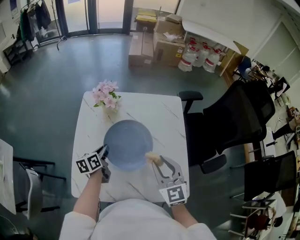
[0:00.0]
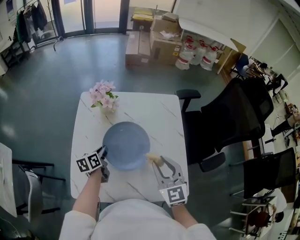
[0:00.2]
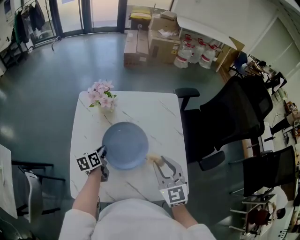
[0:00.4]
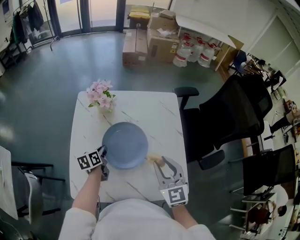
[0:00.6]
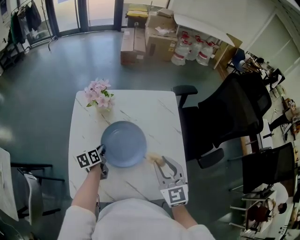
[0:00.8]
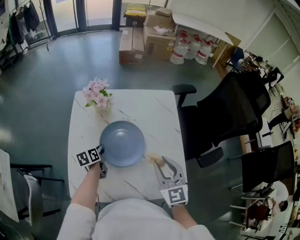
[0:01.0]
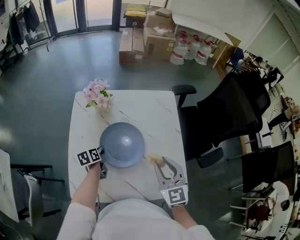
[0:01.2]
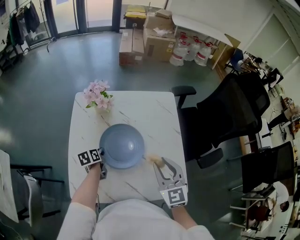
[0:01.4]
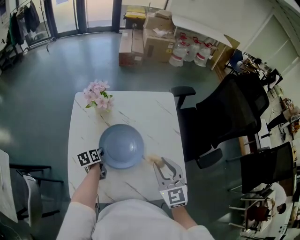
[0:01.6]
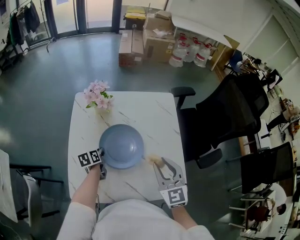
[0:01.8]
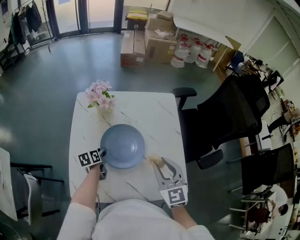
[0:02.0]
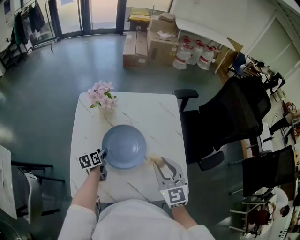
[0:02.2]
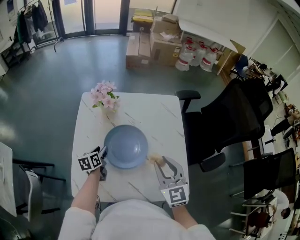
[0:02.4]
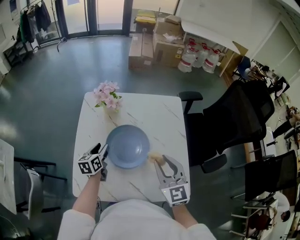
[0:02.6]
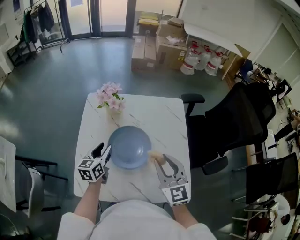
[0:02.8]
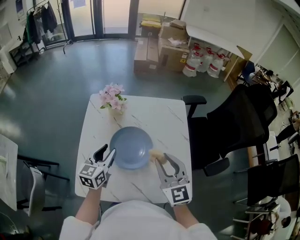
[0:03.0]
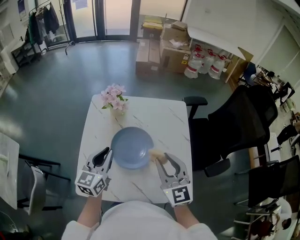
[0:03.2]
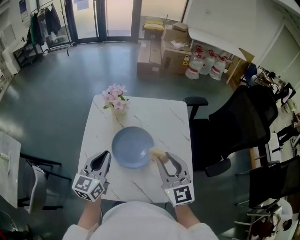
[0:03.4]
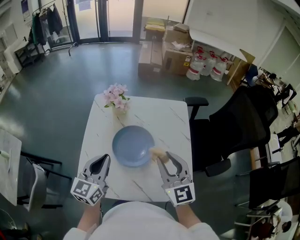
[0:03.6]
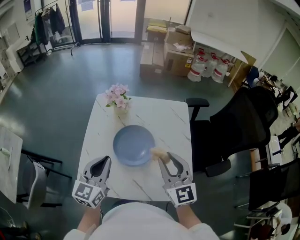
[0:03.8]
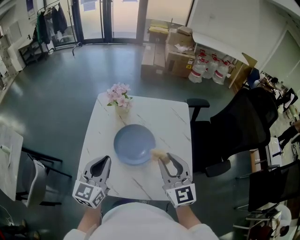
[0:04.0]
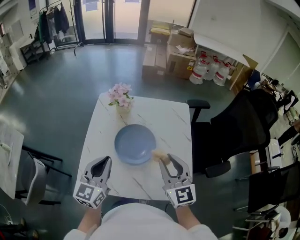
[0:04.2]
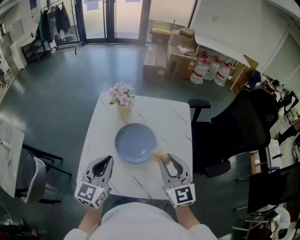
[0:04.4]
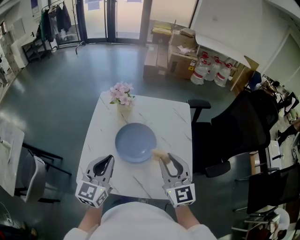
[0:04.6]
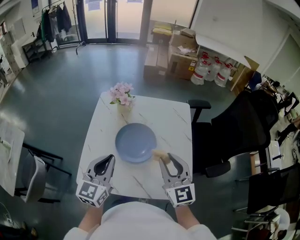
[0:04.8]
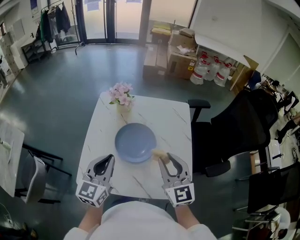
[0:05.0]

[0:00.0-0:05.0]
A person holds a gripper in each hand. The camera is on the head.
0:00.0 to 0:01.6: The left gripper travels downward by approximately 10 cm.
0:01.6 to 0:03.4: The left gripper moves upward, some 25 cm, tilts its fingers about 40 degrees upward, and opens, then closes once more. Meanwhile the right gripper travels upward by roughly 5 cm.
0:03.4 to 0:05.0: The left gripper is displaced backward by roughly 5 cm.

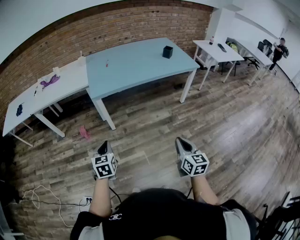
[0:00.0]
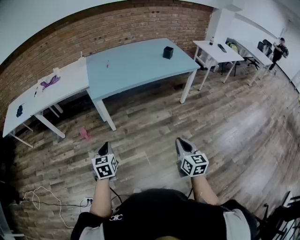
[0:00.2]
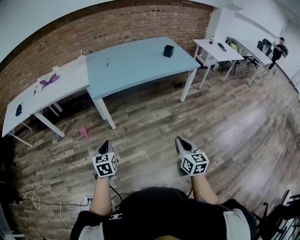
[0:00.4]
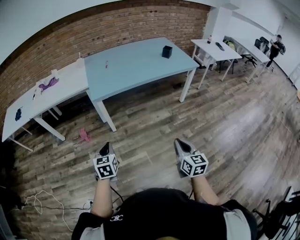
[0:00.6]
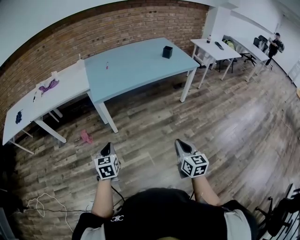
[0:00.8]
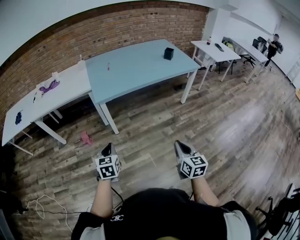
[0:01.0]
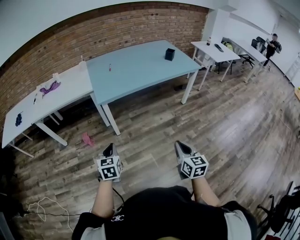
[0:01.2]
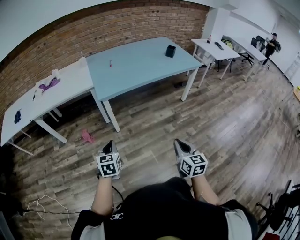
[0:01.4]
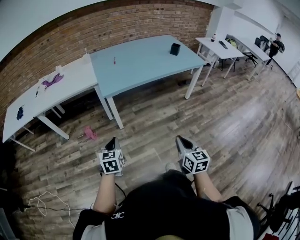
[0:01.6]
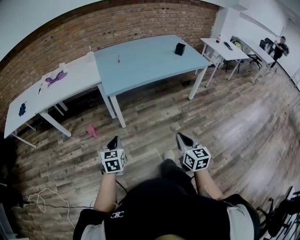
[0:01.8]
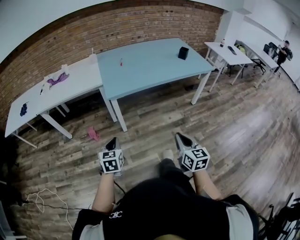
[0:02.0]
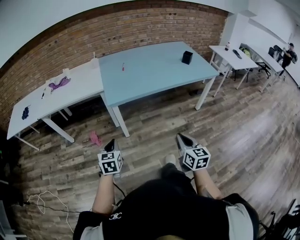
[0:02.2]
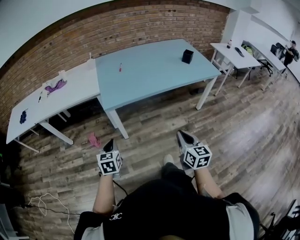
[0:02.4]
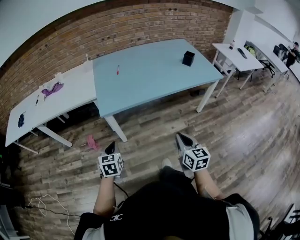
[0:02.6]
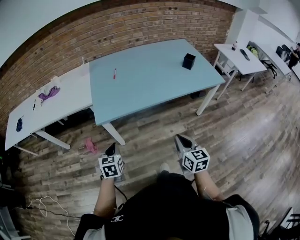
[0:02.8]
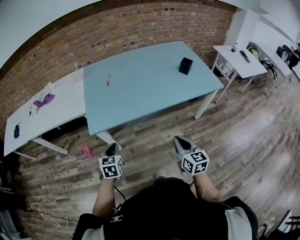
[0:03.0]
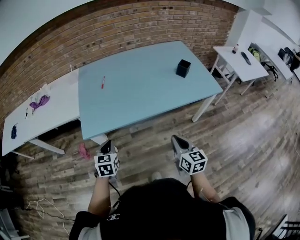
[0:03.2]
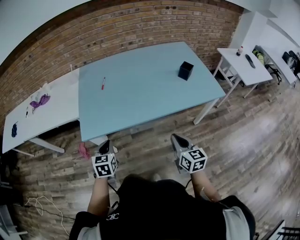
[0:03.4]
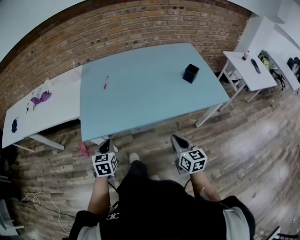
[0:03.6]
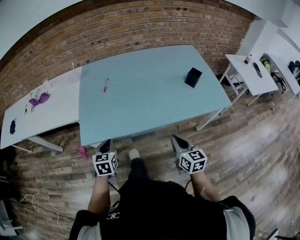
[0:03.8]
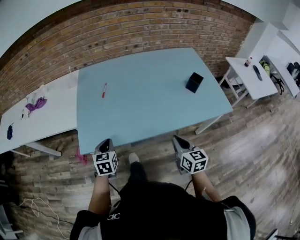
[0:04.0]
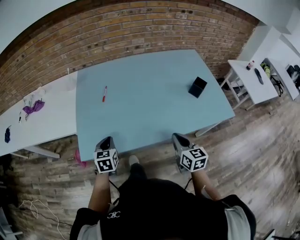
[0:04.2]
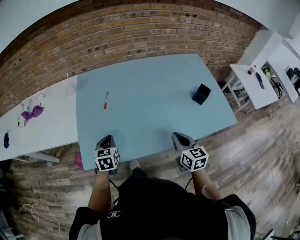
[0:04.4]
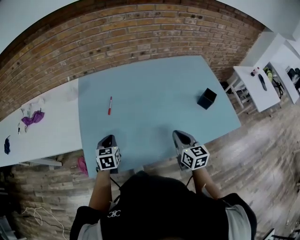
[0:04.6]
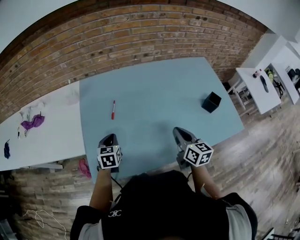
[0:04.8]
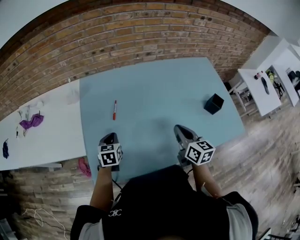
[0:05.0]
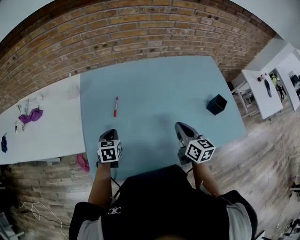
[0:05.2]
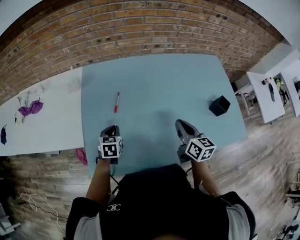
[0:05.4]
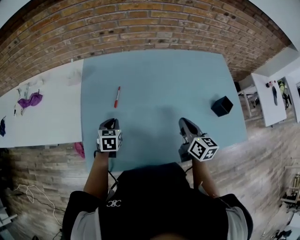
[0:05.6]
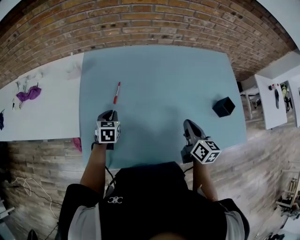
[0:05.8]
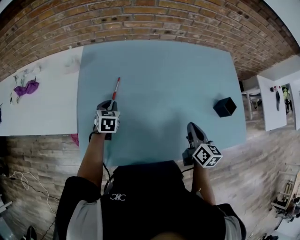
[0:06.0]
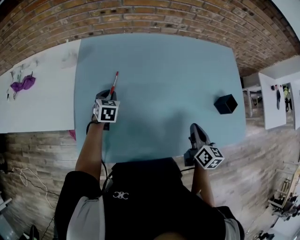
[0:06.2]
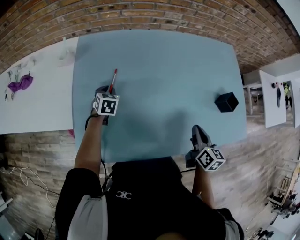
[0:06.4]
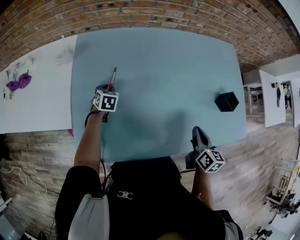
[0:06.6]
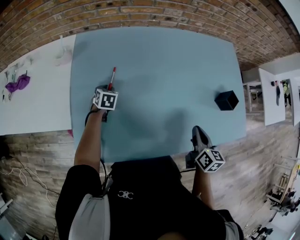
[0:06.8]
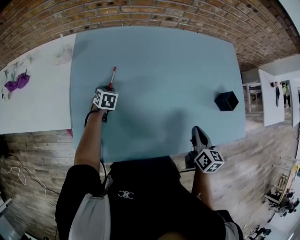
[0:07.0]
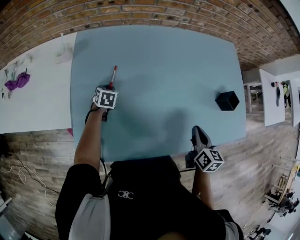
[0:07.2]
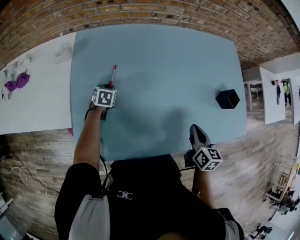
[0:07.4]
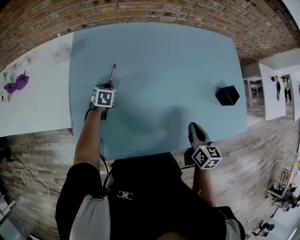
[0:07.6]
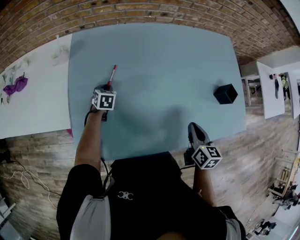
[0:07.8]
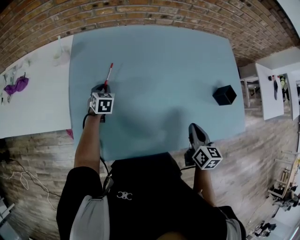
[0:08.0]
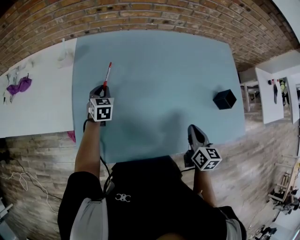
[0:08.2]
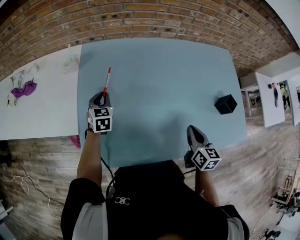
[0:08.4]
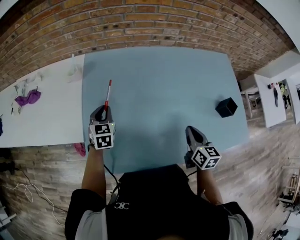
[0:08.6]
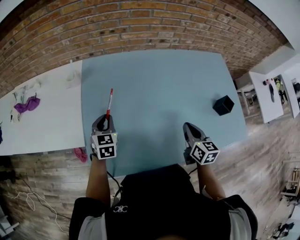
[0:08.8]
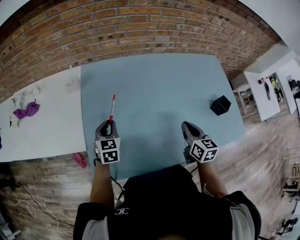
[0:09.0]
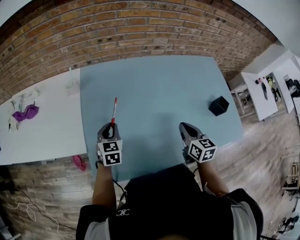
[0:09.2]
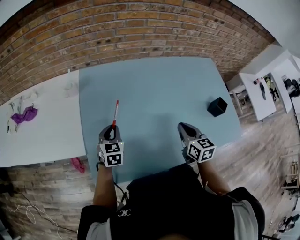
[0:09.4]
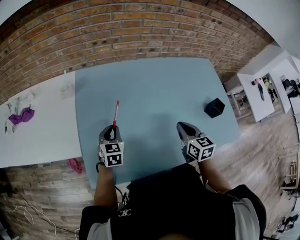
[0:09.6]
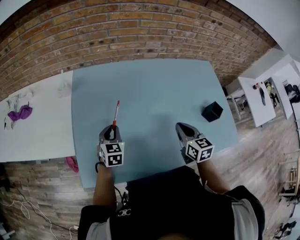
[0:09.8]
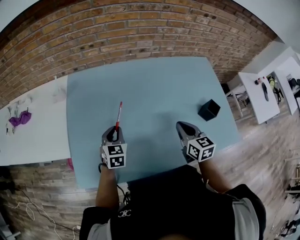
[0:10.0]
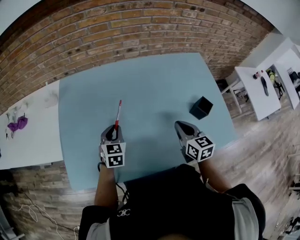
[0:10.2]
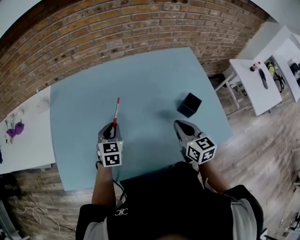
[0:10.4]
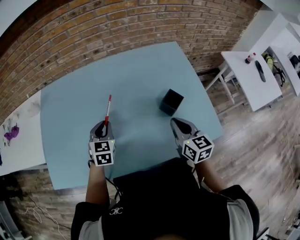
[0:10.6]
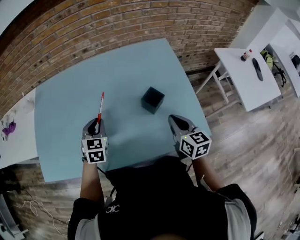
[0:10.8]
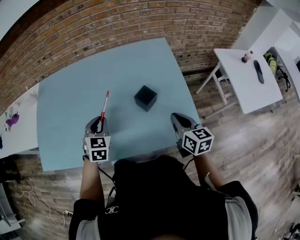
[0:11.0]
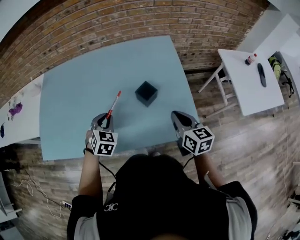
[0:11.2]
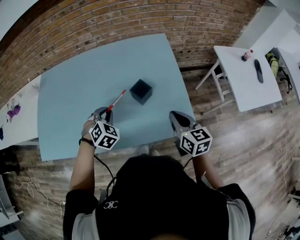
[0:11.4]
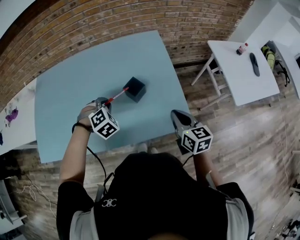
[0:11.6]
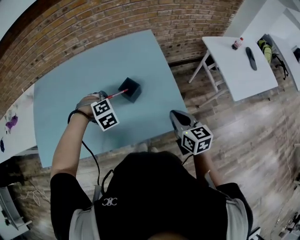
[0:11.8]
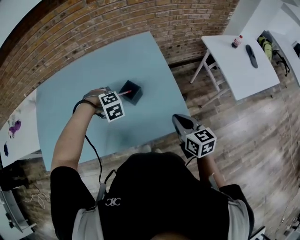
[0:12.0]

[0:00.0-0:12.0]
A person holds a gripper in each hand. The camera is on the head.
0:00.0 to 0:01.6: The left gripper travels to the left by some 10 cm, while the right gripper shifts approximately 15 cm to the left.
0:01.6 to 0:03.0: The grippers both shift forward and to the right by roughly 35 cm.
0:03.0 to 0:04.4: The grippers both shift forward by about 30 cm.
0:04.4 to 0:06.0: Both grippers move forward, approximately 15 cm.
0:06.0 to 0:07.6: The left gripper heads downward and forward, covering approximately 10 cm.
0:07.6 to 0:09.0: The left gripper heads upward and backward, covering about 20 cm, and rotates roughly 30 degrees. Meanwhile the right gripper travels to the left and forward by about 10 cm.
0:09.0 to 0:10.4: The two grippers go some 25 cm to the right.
0:10.4 to 0:12.0: The left gripper shifts roughly 30 cm to the right, and twists some 70 degrees clockwise, seen from behind; the right gripper is displaced to the right and backward by some 30 cm.

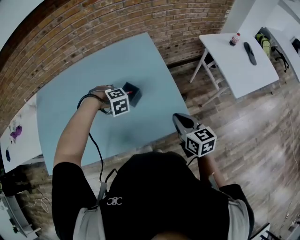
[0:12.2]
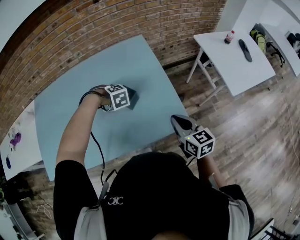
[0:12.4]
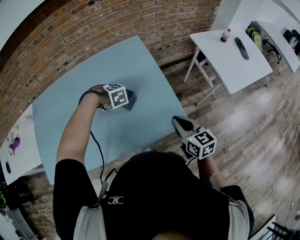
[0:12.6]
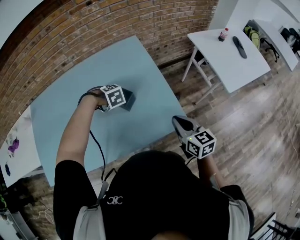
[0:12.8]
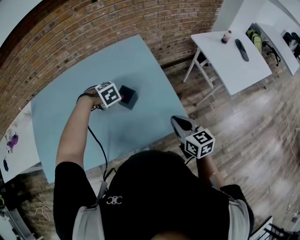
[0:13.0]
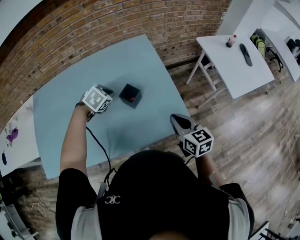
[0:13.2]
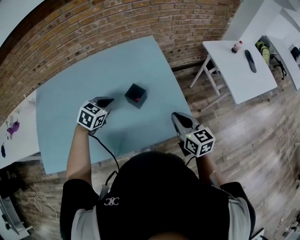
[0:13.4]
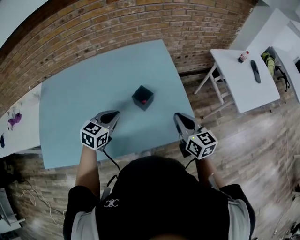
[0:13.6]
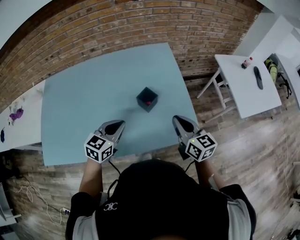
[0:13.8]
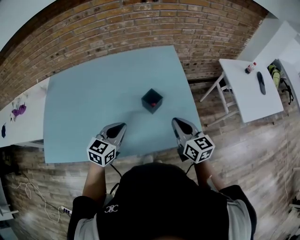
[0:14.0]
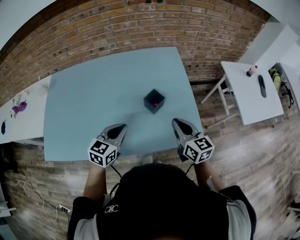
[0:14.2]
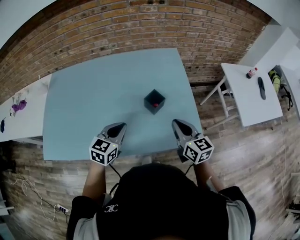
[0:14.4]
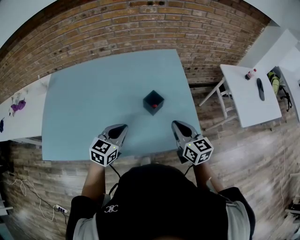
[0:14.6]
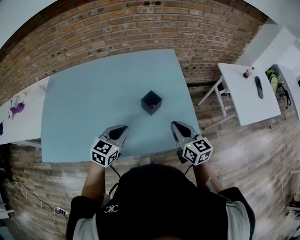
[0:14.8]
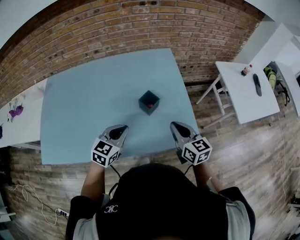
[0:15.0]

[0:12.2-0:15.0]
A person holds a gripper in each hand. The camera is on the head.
0:12.2 to 0:13.6: The right gripper ends up roughly 5 cm from where it was, while the left gripper changes place by about 10 cm, and angles its fingers upward, by roughly 30 degrees.
0:13.6 to 0:15.0: The left gripper is displaced backward by approximately 5 cm.

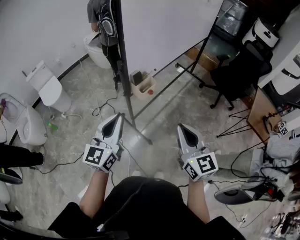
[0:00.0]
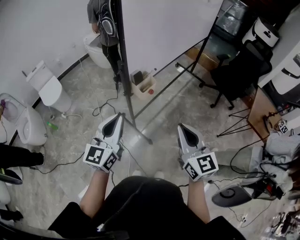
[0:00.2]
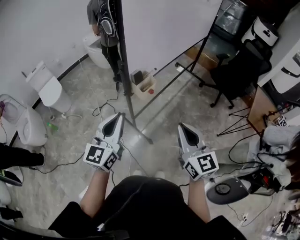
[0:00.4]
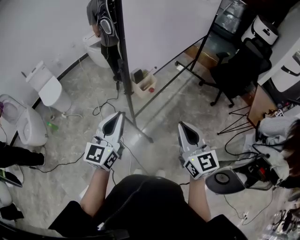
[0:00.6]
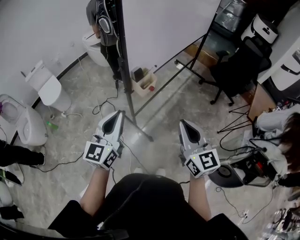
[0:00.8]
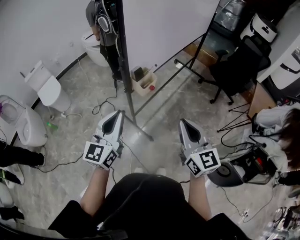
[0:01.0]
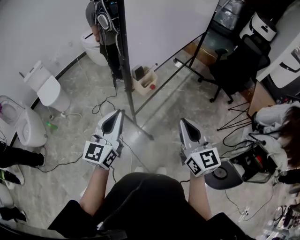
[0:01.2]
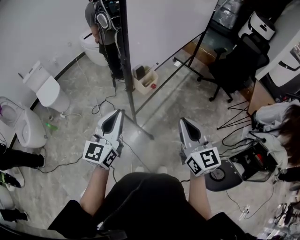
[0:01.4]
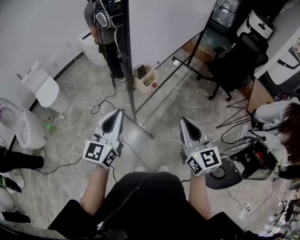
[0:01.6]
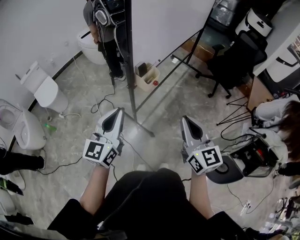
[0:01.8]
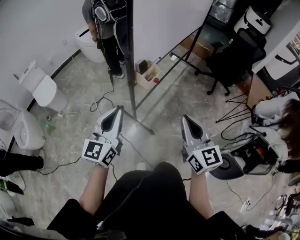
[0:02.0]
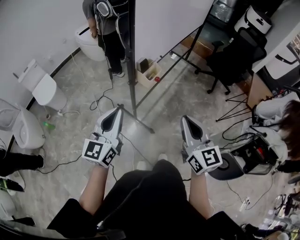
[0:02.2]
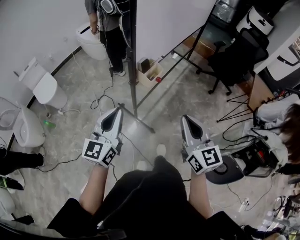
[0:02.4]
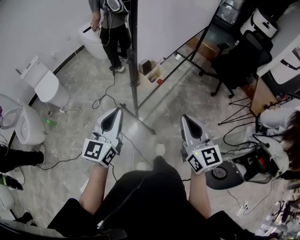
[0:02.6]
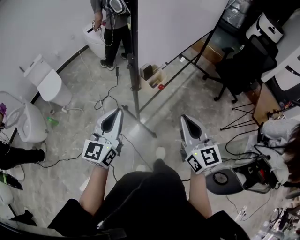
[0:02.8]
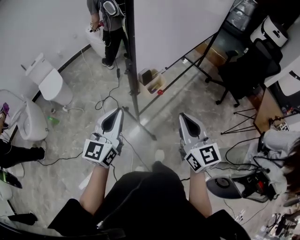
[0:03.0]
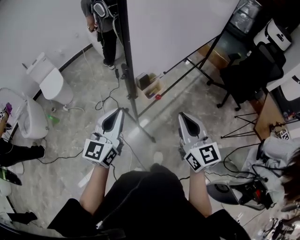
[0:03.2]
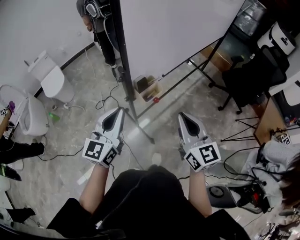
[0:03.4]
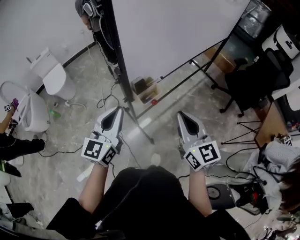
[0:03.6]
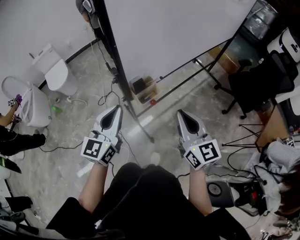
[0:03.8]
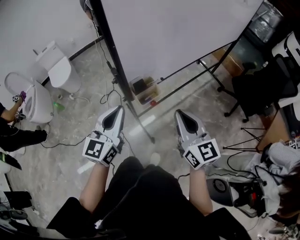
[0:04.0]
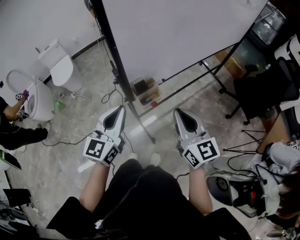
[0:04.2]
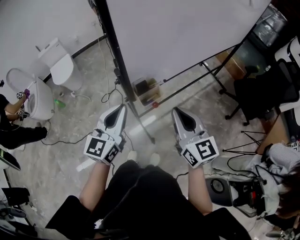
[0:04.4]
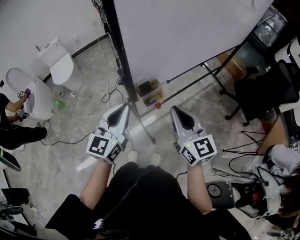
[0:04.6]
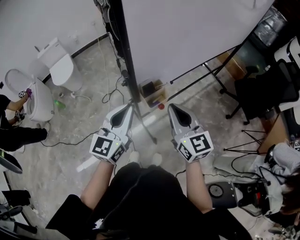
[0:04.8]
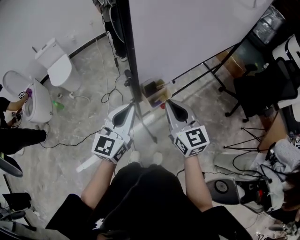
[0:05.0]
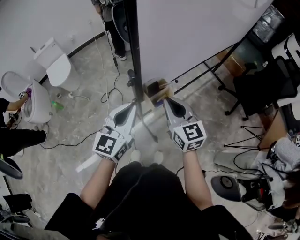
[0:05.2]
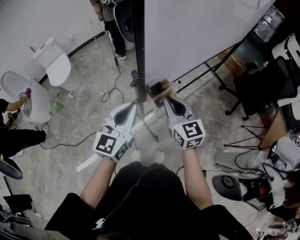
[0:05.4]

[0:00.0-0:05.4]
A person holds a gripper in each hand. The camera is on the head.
0:00.0 to 0:01.4: The grippers stay close to where they were, moving slightly.
0:01.4 to 0:02.8: The left gripper changes place by about 5 cm, while the right gripper shifts by approximately 5 cm.
0:02.8 to 0:04.0: The grippers both shift forward and to the right by some 15 cm.
0:04.0 to 0:05.4: The left gripper is displaced to the left by approximately 5 cm. Meanwhile the right gripper heads to the left, forward and downward, covering approximately 15 cm.
